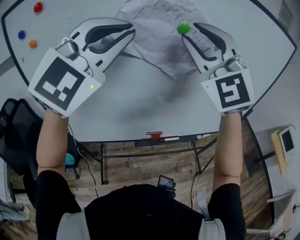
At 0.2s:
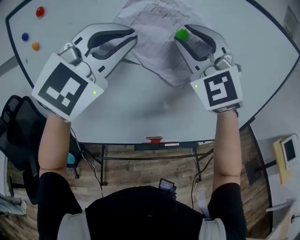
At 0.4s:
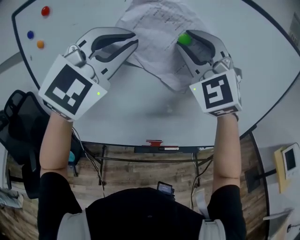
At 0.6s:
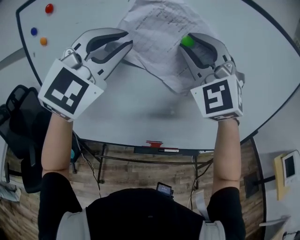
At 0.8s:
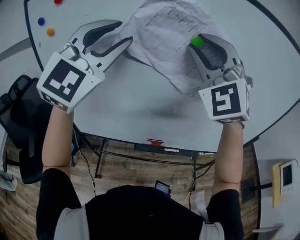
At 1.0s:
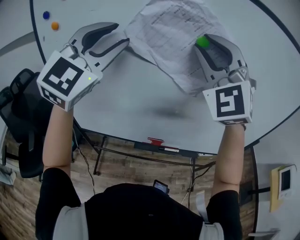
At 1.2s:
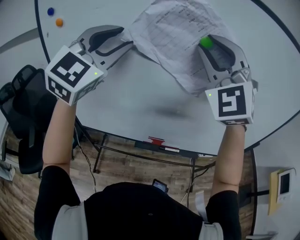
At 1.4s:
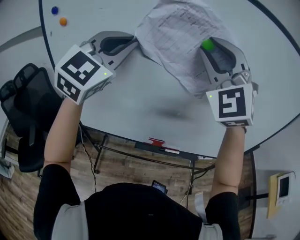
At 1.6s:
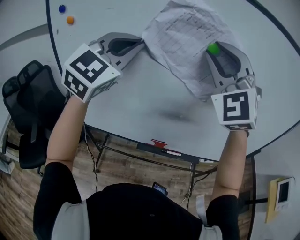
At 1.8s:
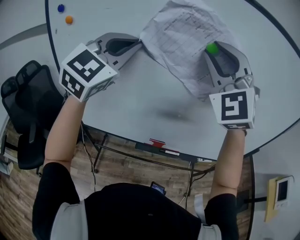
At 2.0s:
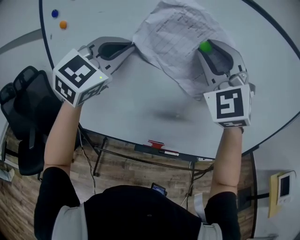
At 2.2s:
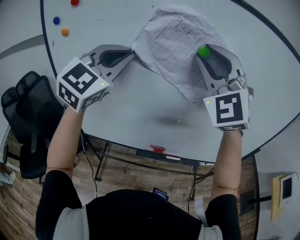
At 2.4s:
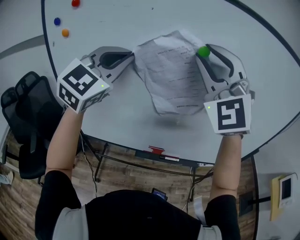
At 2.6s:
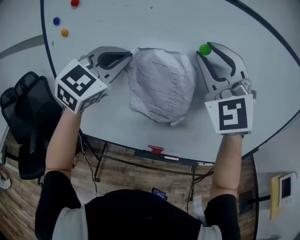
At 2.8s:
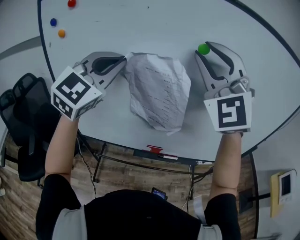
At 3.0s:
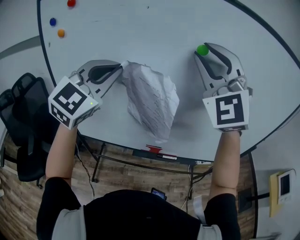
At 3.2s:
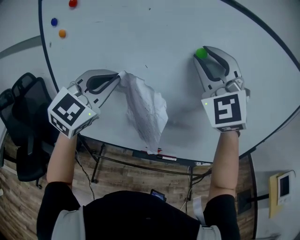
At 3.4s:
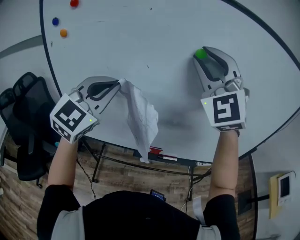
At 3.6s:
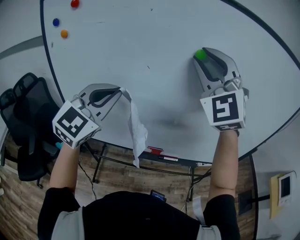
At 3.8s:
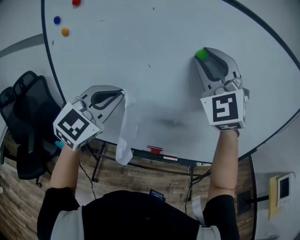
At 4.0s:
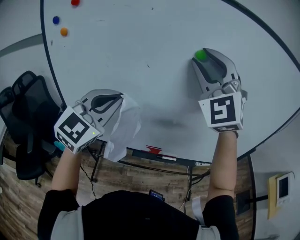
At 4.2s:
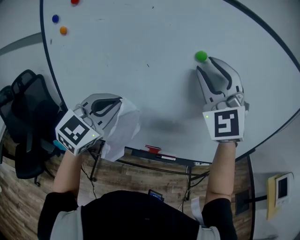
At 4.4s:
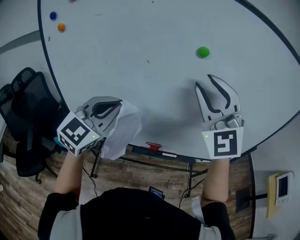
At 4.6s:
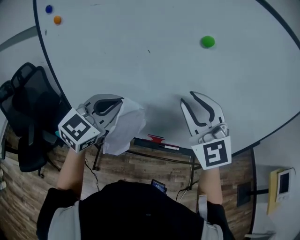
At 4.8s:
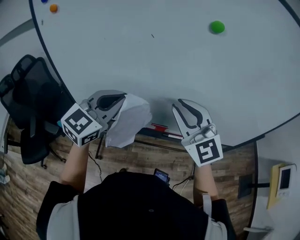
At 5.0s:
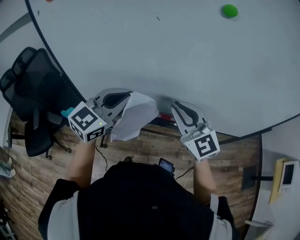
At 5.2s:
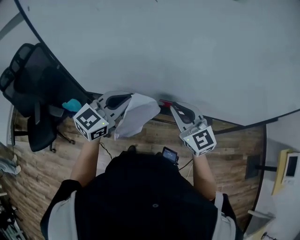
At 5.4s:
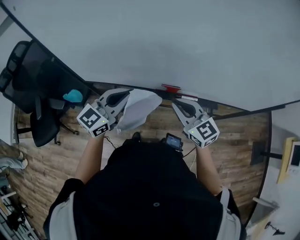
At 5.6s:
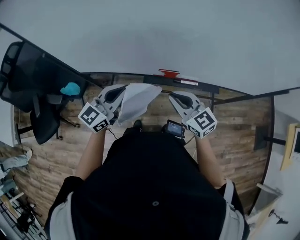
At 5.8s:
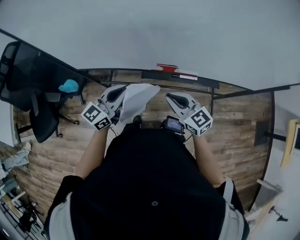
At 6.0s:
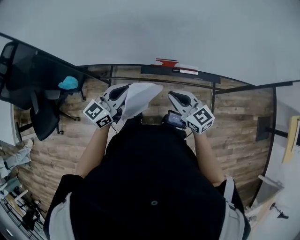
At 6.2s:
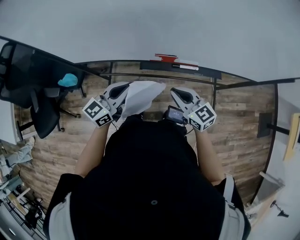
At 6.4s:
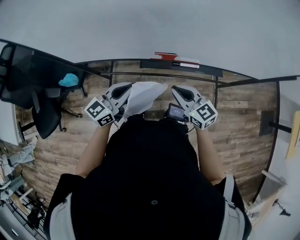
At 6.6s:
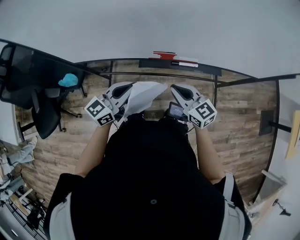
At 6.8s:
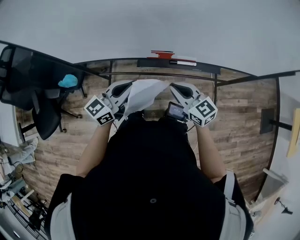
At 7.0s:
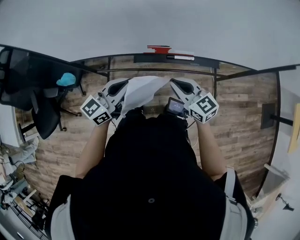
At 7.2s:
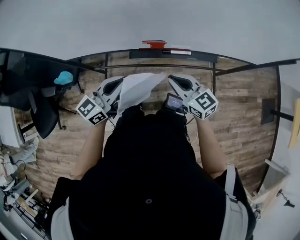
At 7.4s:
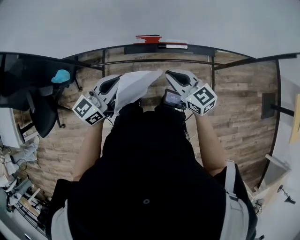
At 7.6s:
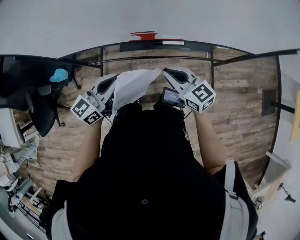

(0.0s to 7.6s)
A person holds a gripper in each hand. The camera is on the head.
0.0s - 1.6s: The left gripper heads forward and to the left, covering about 10 cm, changes its angle by about 20 degrees, and opens, then closes again.
1.6s - 3.0s: The grippers make only small movements.
3.0s - 4.6s: The grippers both shift downward by approximately 15 cm. The right gripper turns by approximately 30 degrees. The left gripper rotates some 20 degrees.
4.6s - 6.0s: Both grippers travel together downward, roughly 35 cm. The right gripper rotates around the line of its fingers by roughly 50 degrees, clockwise from behind, and closes its fingers. The left gripper rotates roughly 40 degrees.
6.0s - 7.6s: The grippers both shift to the right by roughly 5 cm.

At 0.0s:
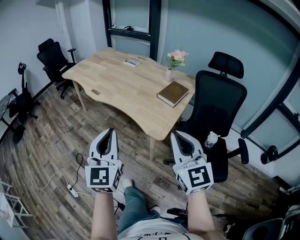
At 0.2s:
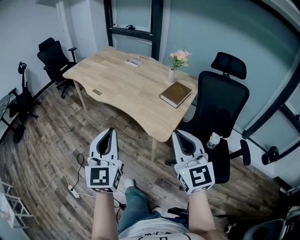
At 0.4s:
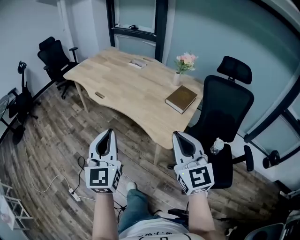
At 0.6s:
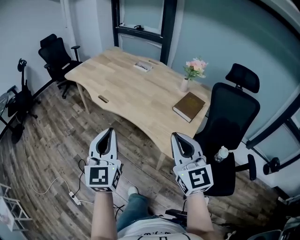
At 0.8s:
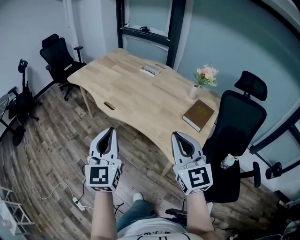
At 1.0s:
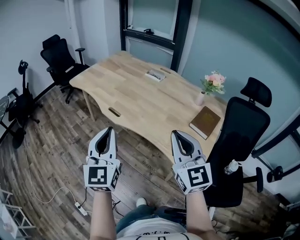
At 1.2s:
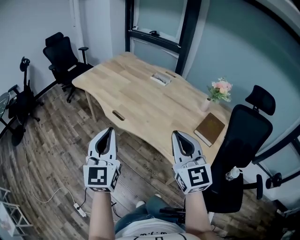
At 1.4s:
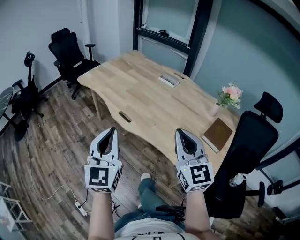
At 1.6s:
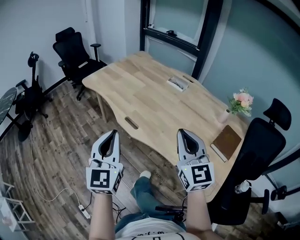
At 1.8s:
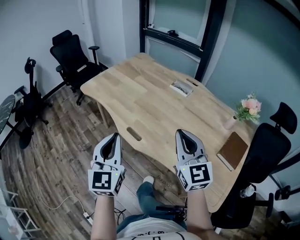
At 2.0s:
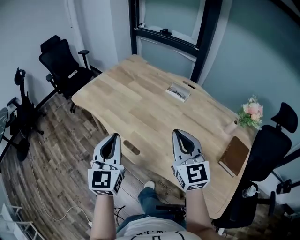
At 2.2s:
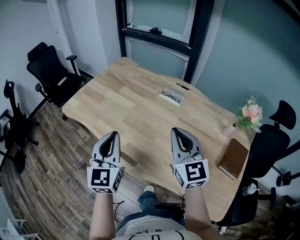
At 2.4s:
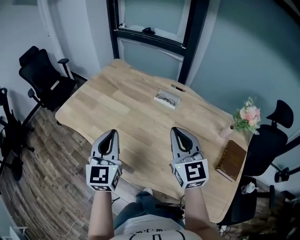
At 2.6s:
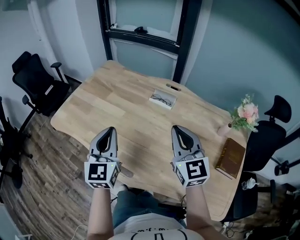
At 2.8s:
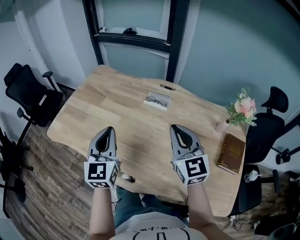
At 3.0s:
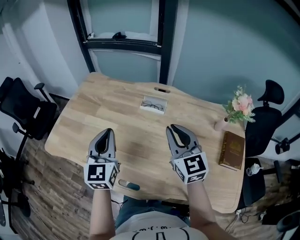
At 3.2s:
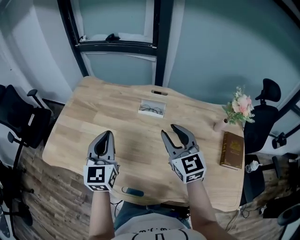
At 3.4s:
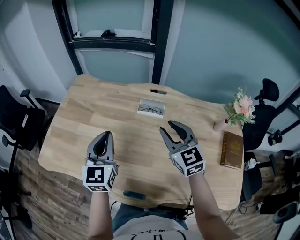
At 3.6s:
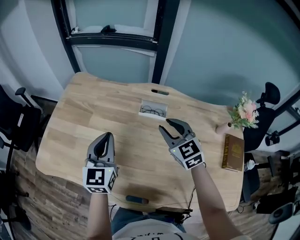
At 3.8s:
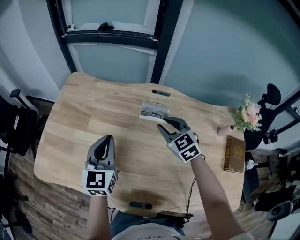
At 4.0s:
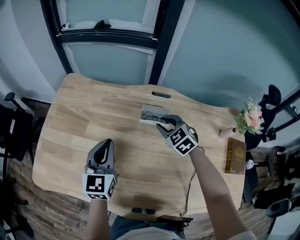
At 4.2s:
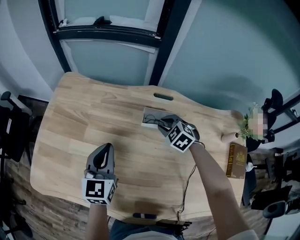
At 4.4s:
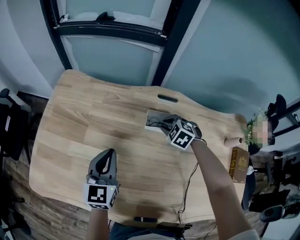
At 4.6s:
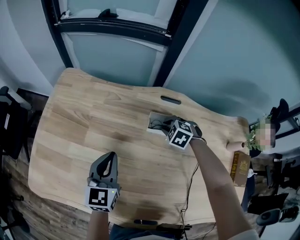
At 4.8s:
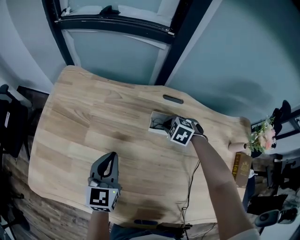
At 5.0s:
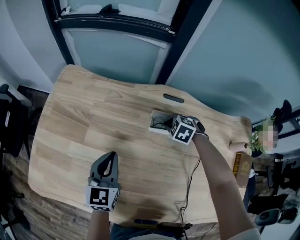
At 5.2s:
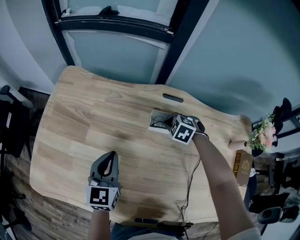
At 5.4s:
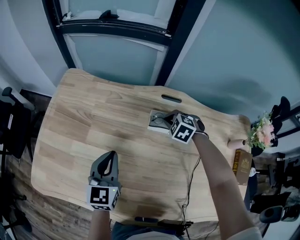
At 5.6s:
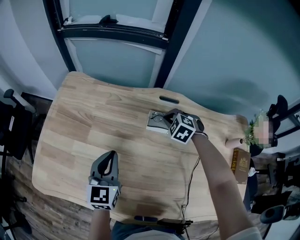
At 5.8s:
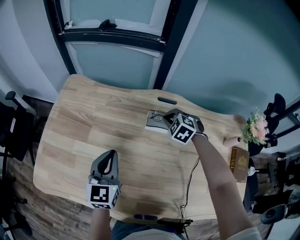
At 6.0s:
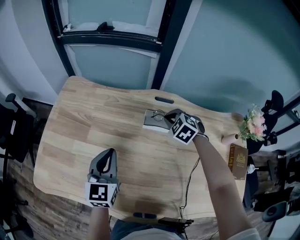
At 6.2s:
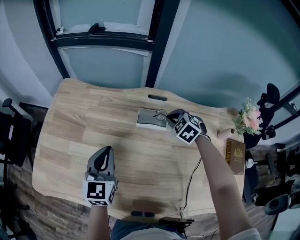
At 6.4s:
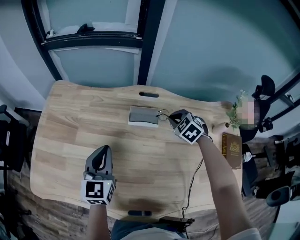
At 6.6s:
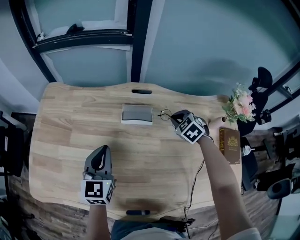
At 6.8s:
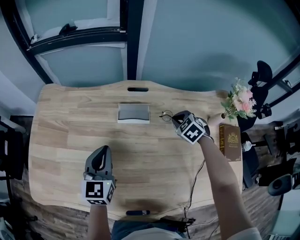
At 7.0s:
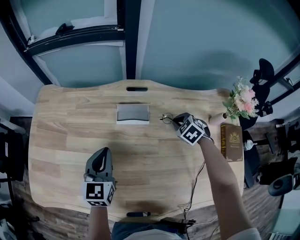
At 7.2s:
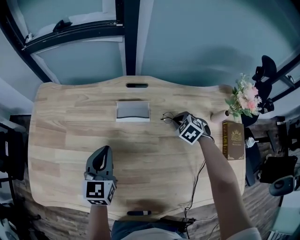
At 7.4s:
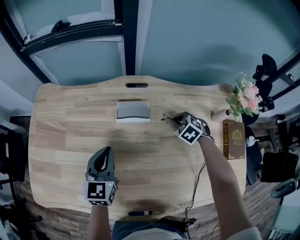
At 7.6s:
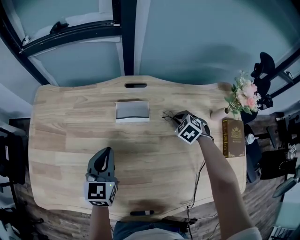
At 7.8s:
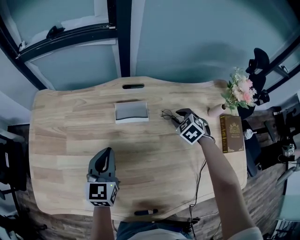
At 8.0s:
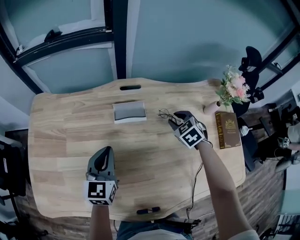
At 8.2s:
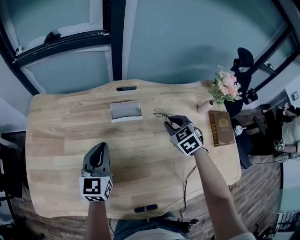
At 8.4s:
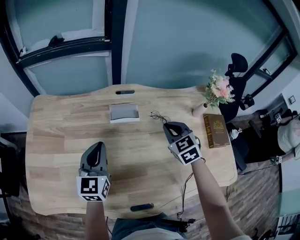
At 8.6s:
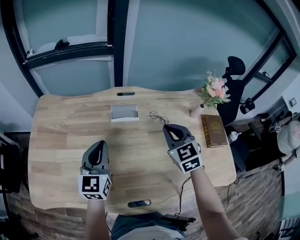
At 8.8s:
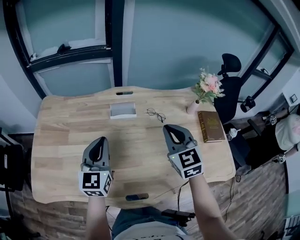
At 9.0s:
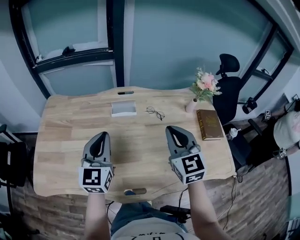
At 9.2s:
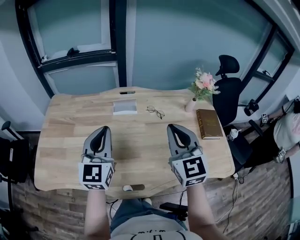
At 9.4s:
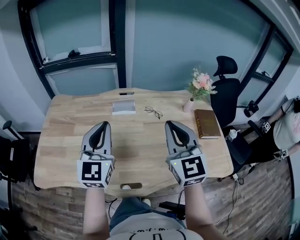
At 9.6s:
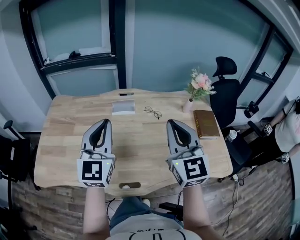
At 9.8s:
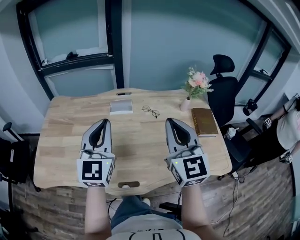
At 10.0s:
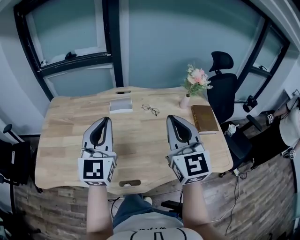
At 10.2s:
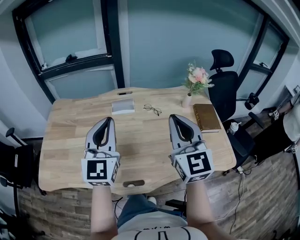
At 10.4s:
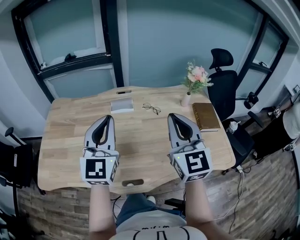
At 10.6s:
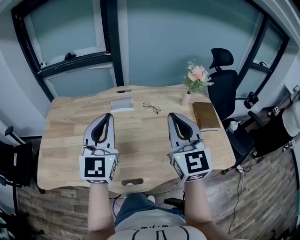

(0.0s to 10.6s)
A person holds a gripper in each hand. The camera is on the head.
0.0s - 1.6s: The two grippers travel together, forward and to the left, about 50 cm.
1.6s - 3.0s: The two grippers go roughly 40 cm forward. The left gripper swivels some 20 degrees, while the right gripper changes its angle by approximately 20 degrees.
3.0s - 4.6s: The right gripper shifts roughly 40 cm forward and downward, and tilts its fingers about 60 degrees downward. The left gripper is displaced forward and downward by some 25 cm, and rotates some 20 degrees.
4.6s - 6.0s: The right gripper heads upward, covering roughly 10 cm. The left gripper shifts by approximately 5 cm.
6.0s - 7.6s: The right gripper travels to the right and downward by roughly 20 cm, and rotates roughly 20 degrees; the left gripper heads to the right and downward, covering about 10 cm.
7.6s - 9.0s: The right gripper goes some 40 cm upward and backward, tips its fingers upward by some 50 degrees, and opens, then closes again. Meanwhile the left gripper goes roughly 20 cm upward and backward, and changes its angle by approximately 20 degrees.
9.0s - 10.6s: The right gripper goes approximately 10 cm upward and backward, while the left gripper moves upward, to the right and backward, about 10 cm.

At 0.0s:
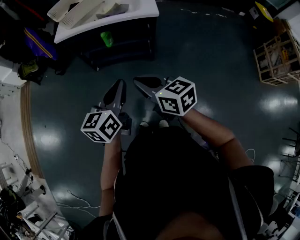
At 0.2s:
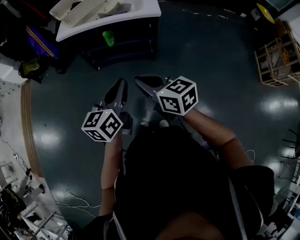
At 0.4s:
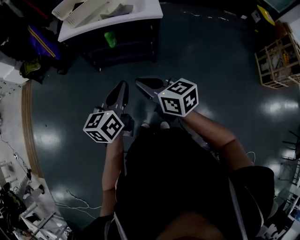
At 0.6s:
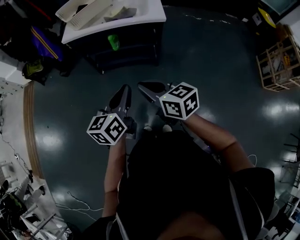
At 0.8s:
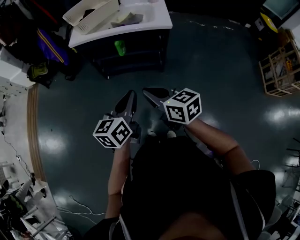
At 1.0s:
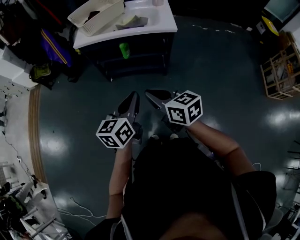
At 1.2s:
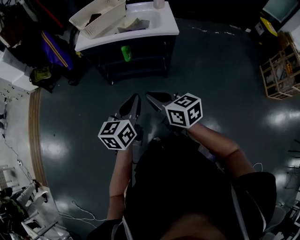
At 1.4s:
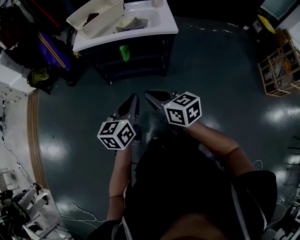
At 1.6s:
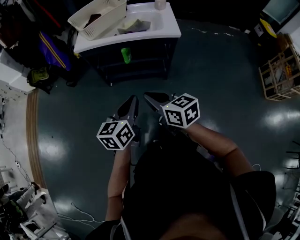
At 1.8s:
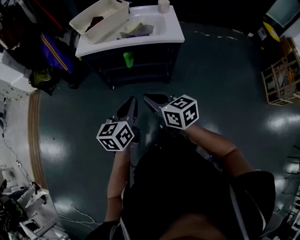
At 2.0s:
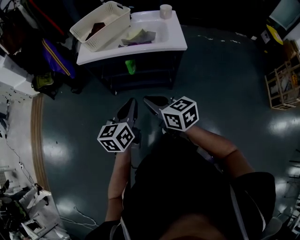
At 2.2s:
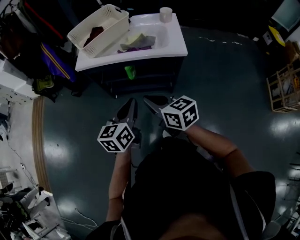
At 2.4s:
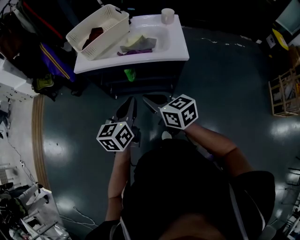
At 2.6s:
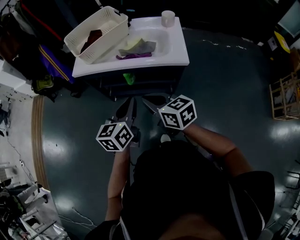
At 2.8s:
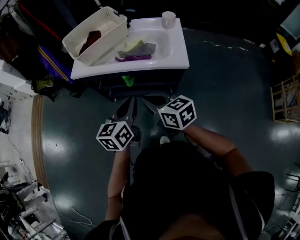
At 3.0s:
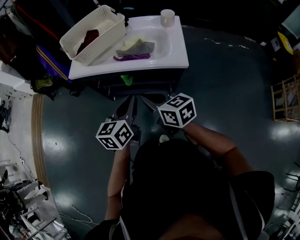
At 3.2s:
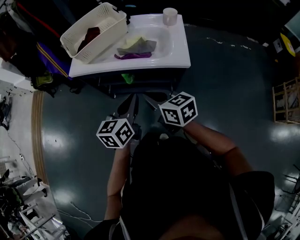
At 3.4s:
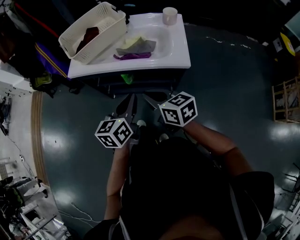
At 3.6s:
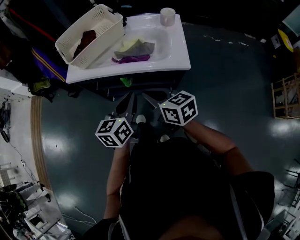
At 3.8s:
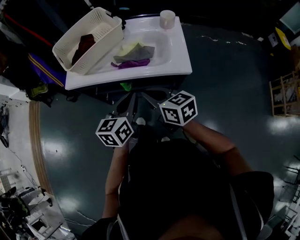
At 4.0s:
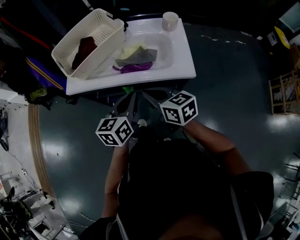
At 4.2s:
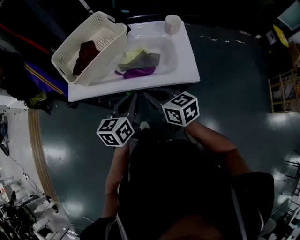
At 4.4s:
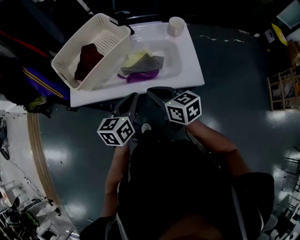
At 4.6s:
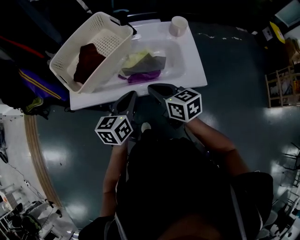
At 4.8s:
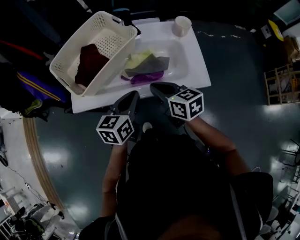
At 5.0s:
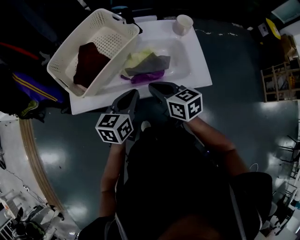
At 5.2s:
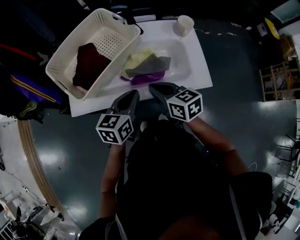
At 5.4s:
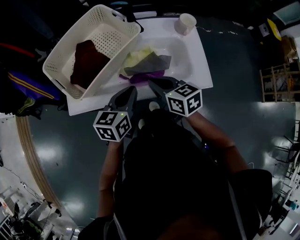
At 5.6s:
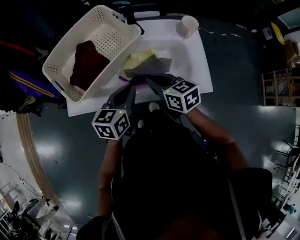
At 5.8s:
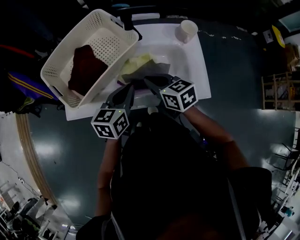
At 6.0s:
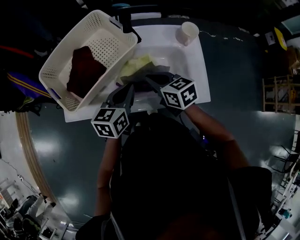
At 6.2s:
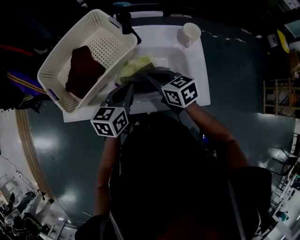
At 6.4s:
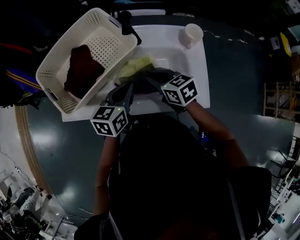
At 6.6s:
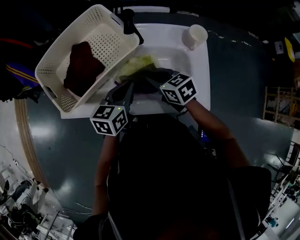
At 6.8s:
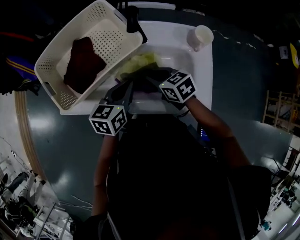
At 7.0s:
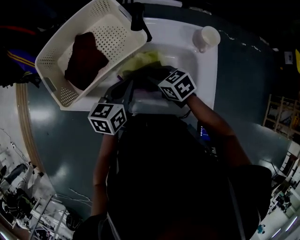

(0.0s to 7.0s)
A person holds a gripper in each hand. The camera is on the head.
0.0s - 1.4s: The grippers both shift to the left by about 10 cm.
1.4s - 2.8s: Both grippers travel together forward, roughly 25 cm.
2.8s - 4.2s: Both grippers move forward, approximately 15 cm.
4.2s - 5.6s: The left gripper is displaced forward and to the left by roughly 15 cm, while the right gripper heads forward, covering approximately 15 cm.
5.6s - 7.0s: The right gripper moves downward and forward, about 10 cm, rotates roughly 30 degrees, and opens. Meanwhile the left gripper shifts about 5 cm forward.
